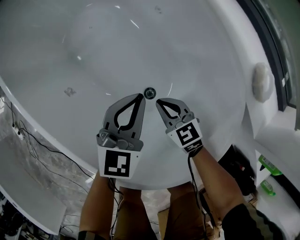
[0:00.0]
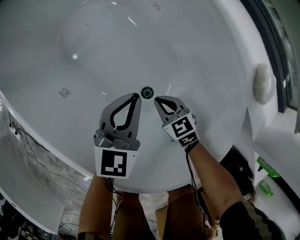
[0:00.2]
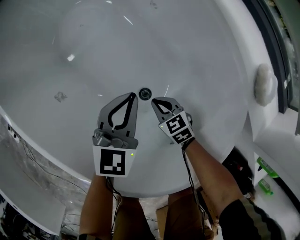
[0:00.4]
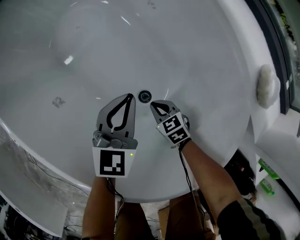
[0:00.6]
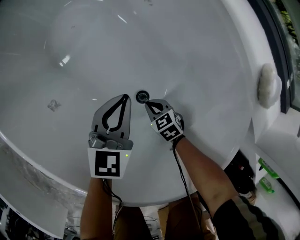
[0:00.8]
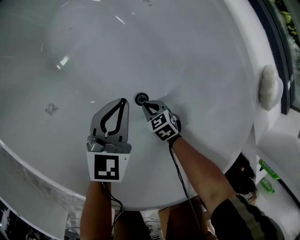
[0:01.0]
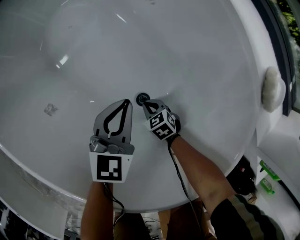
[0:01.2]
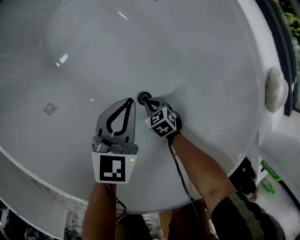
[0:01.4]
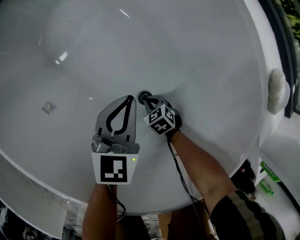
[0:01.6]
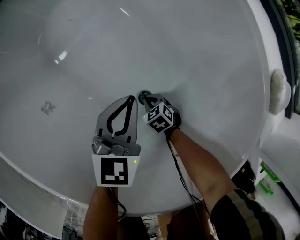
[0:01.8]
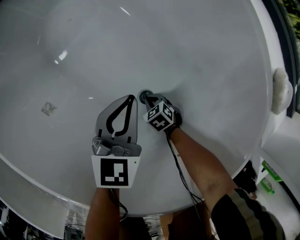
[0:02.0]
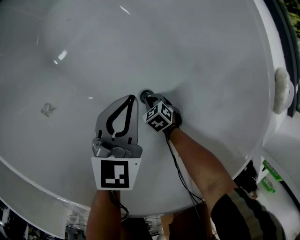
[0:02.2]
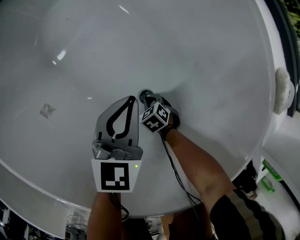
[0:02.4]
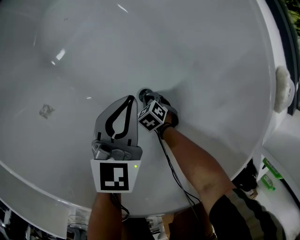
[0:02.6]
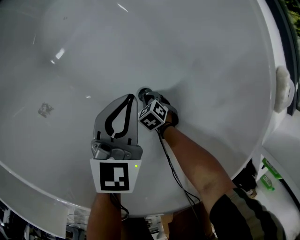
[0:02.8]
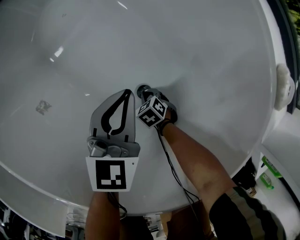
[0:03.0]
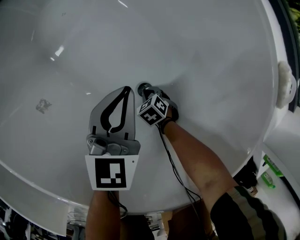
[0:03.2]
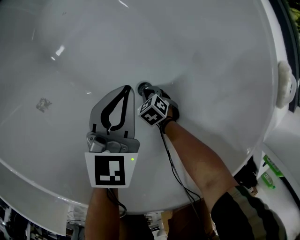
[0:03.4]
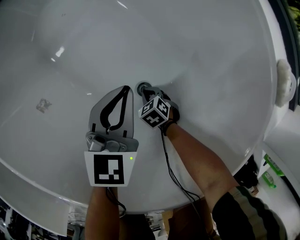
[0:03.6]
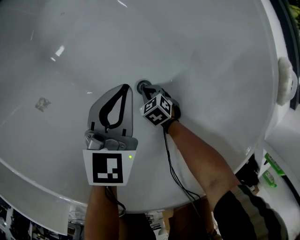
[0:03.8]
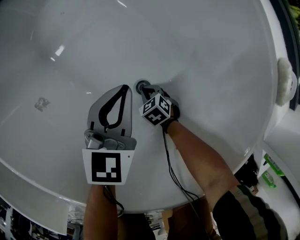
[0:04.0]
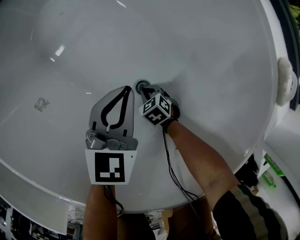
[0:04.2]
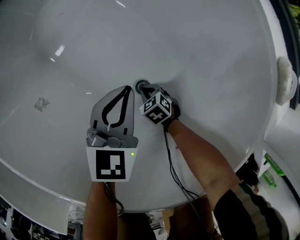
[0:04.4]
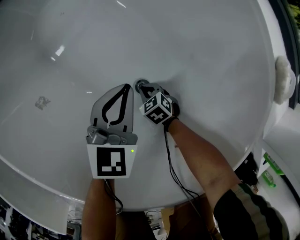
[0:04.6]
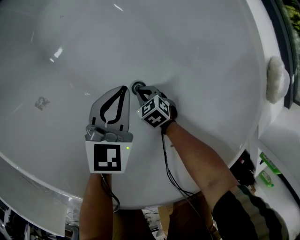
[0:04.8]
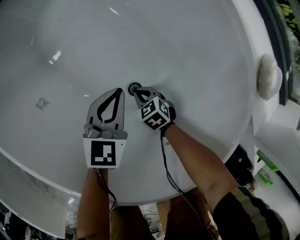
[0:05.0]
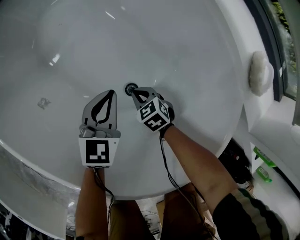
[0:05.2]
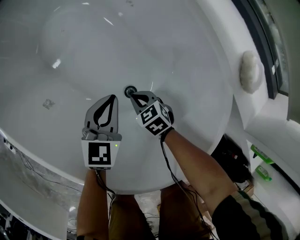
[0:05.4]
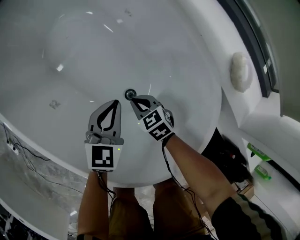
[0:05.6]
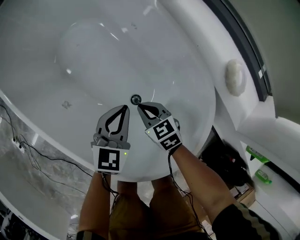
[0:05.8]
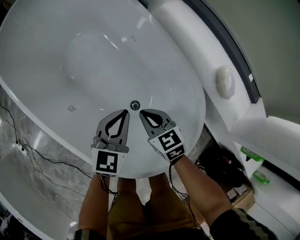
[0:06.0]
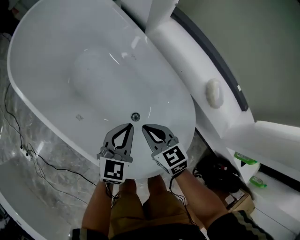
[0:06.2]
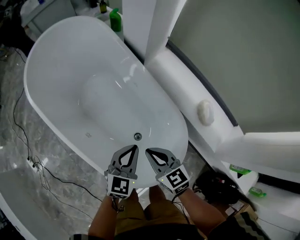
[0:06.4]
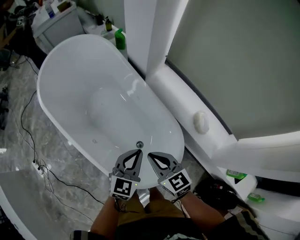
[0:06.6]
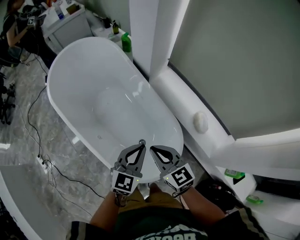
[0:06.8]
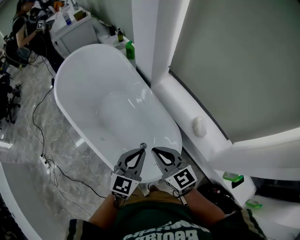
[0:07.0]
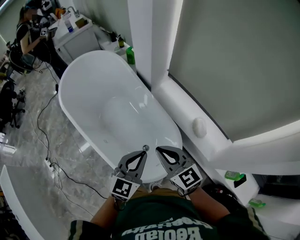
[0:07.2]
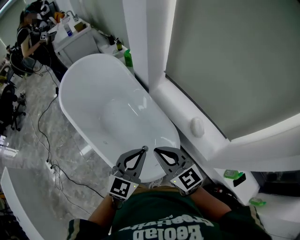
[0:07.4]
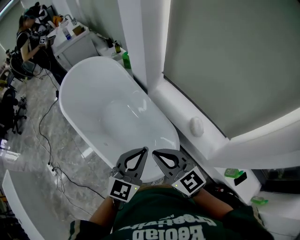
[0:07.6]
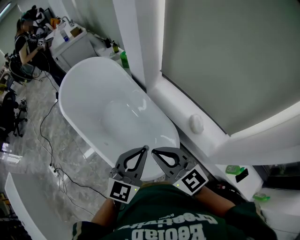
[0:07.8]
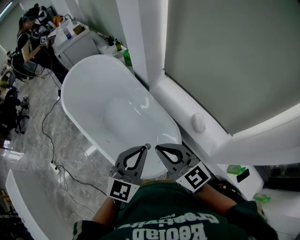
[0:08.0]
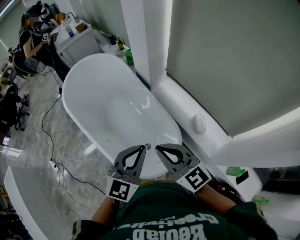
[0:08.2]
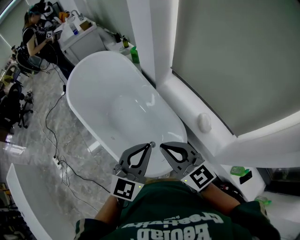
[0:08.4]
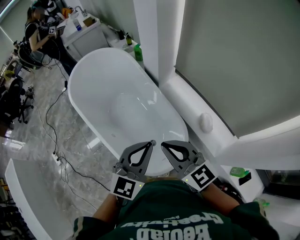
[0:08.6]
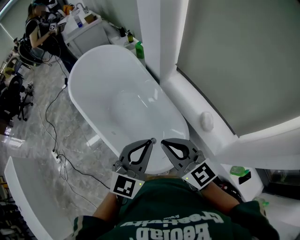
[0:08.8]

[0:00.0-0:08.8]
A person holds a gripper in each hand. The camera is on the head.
0:00.0 to 0:01.4: The left gripper moves downward, roughly 10 cm. Meanwhile the right gripper moves downward, roughly 25 cm, and rotates about 30 degrees.
0:01.4 to 0:03.0: The right gripper moves downward, roughly 5 cm.
0:03.0 to 0:04.4: The grippers make only small movements.
0:04.4 to 0:05.8: The left gripper travels upward by about 15 cm; the right gripper goes roughly 30 cm upward, and changes its angle by about 20 degrees.
0:05.8 to 0:07.4: The grippers both shift upward by about 50 cm. The right gripper tilts its fingers about 30 degrees upward.
0:07.4 to 0:08.8: The left gripper shifts approximately 5 cm upward; the right gripper ends up some 5 cm from where it was.

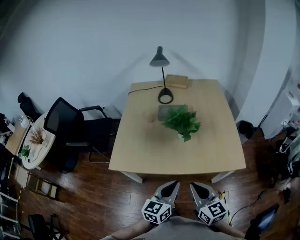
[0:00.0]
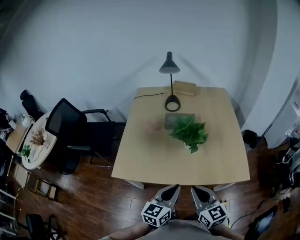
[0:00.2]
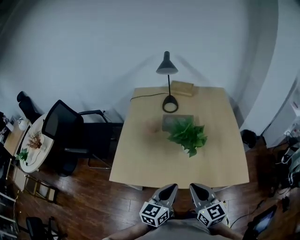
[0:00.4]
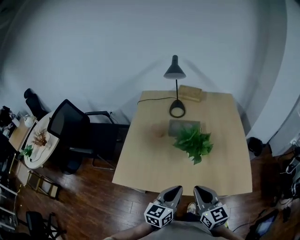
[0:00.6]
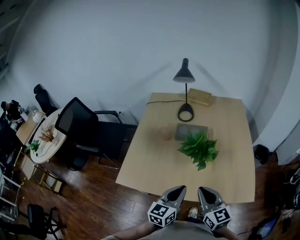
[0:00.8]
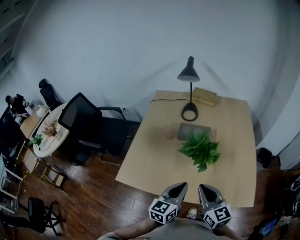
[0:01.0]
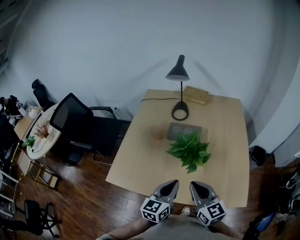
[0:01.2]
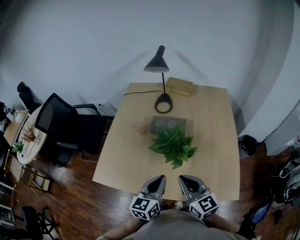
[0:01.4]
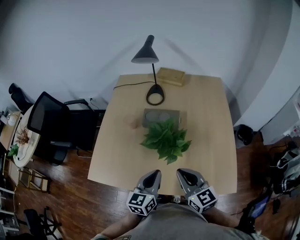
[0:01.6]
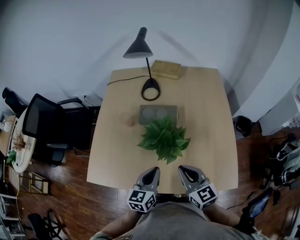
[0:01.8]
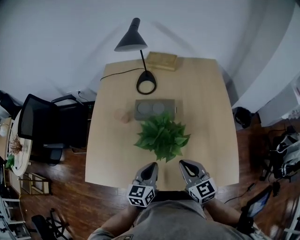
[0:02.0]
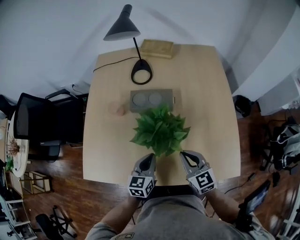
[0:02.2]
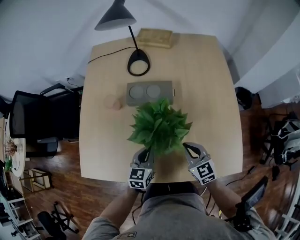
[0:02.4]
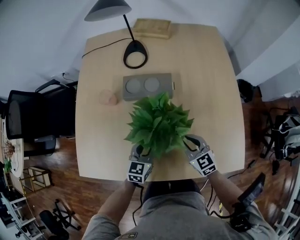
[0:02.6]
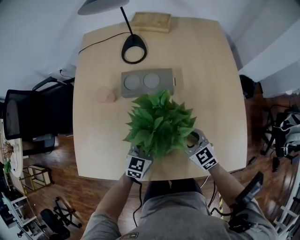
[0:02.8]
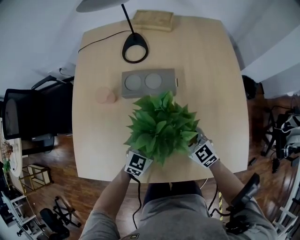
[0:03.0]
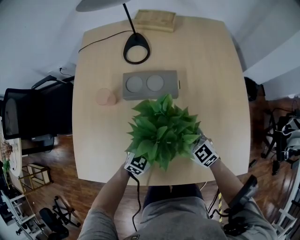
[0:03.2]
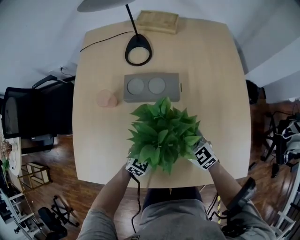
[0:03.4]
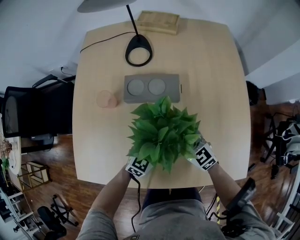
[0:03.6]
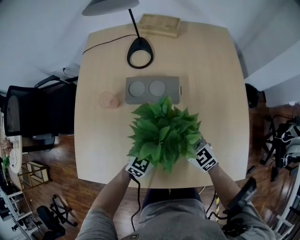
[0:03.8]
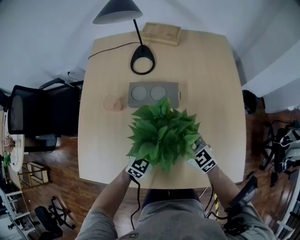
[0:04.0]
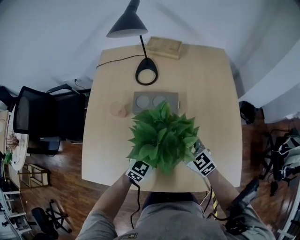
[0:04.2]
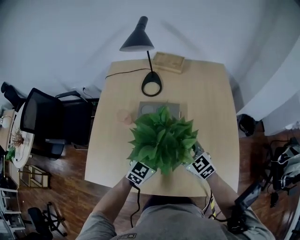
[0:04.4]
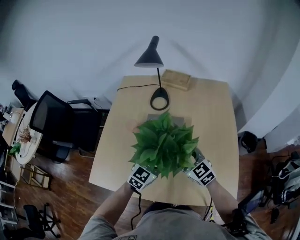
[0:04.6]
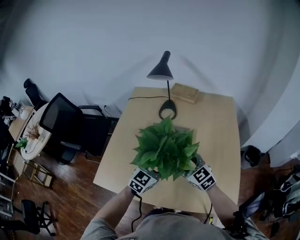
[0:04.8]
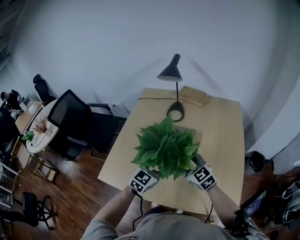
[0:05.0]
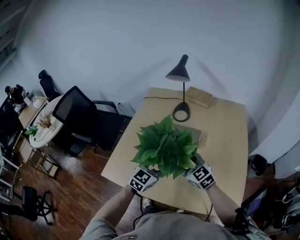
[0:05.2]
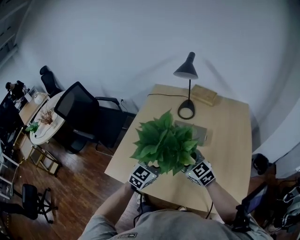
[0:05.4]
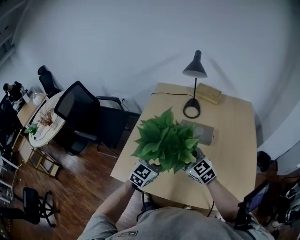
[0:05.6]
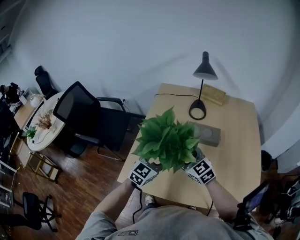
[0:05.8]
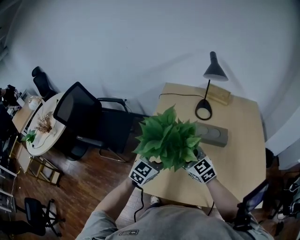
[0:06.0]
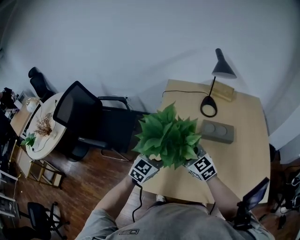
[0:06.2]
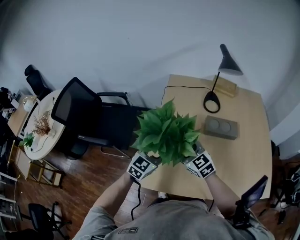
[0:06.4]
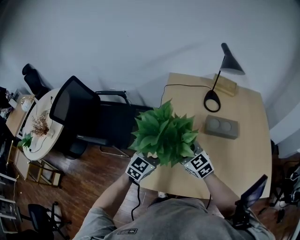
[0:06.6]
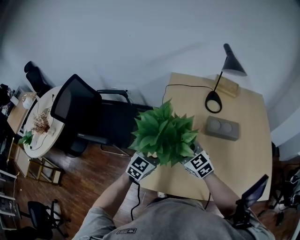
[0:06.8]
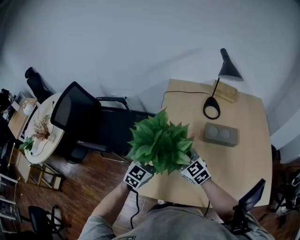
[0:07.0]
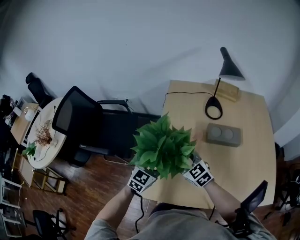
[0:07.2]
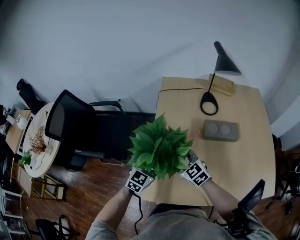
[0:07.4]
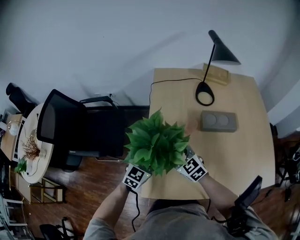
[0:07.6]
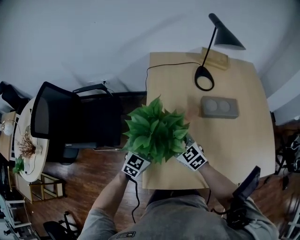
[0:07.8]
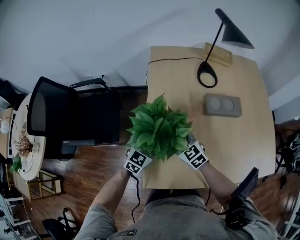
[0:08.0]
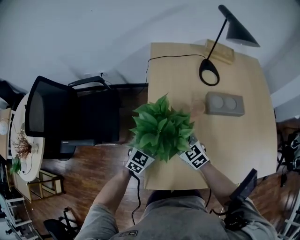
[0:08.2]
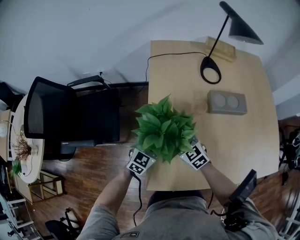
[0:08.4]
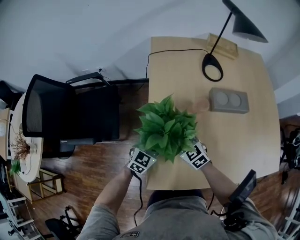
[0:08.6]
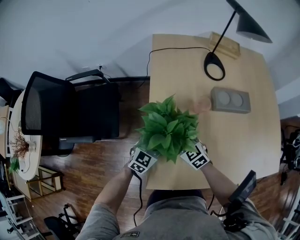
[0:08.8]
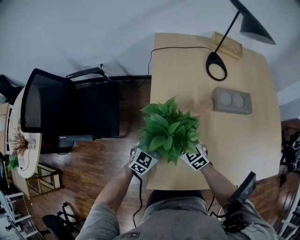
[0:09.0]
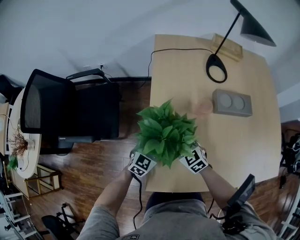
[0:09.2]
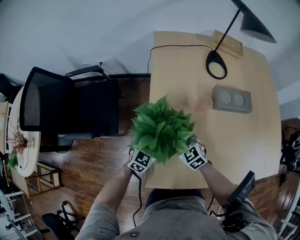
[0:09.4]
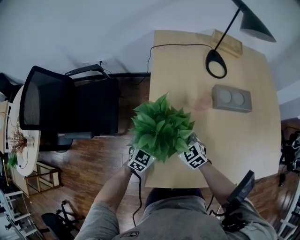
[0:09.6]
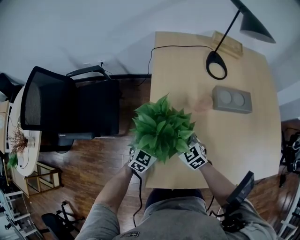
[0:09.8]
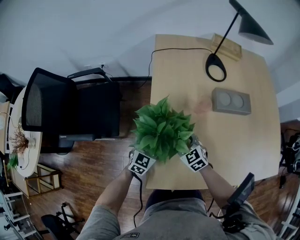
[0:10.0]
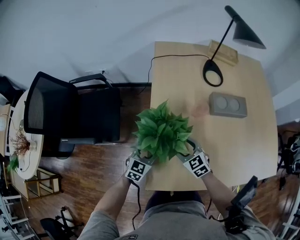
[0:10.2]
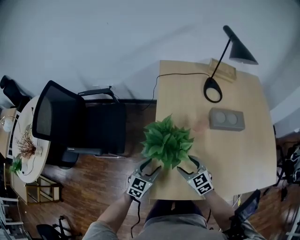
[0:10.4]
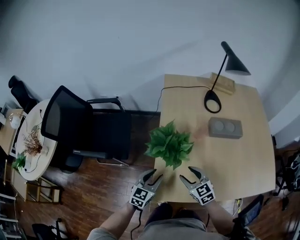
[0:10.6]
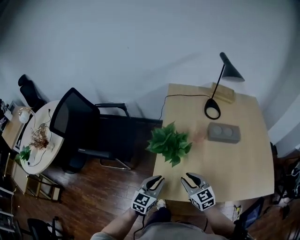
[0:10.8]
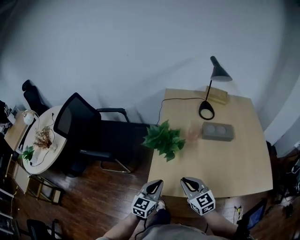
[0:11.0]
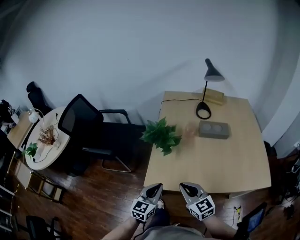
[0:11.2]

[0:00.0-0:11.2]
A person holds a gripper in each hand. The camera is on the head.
0:00.0 to 0:01.6: The two grippers go roughly 20 cm forward.
0:01.6 to 0:03.2: Both grippers move downward and forward, approximately 20 cm. The right gripper rotates roughly 30 degrees, and opens, while the left gripper turns by roughly 40 degrees, and opens its fingers.
0:03.2 to 0:04.8: Both grippers travel together upward, some 15 cm.
0:04.8 to 0:06.4: The two grippers go roughly 30 cm to the left.
0:06.4 to 0:08.0: Both grippers travel together downward, approximately 10 cm.
0:08.0 to 0:09.6: The grippers both shift downward by about 10 cm.
0:09.6 to 0:11.2: The two grippers go about 30 cm backward and upward. The right gripper changes its angle by roughly 20 degrees, and closes up; the left gripper turns by roughly 30 degrees, and closes up.

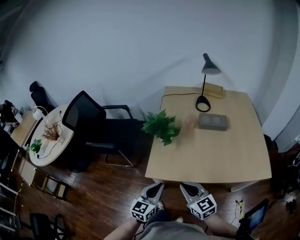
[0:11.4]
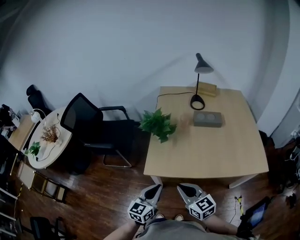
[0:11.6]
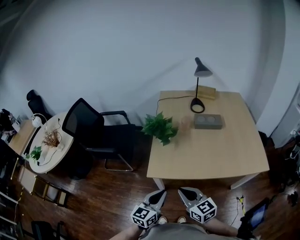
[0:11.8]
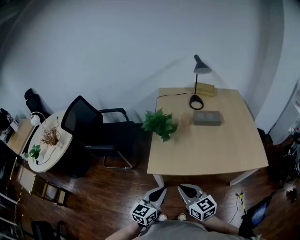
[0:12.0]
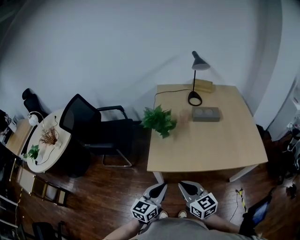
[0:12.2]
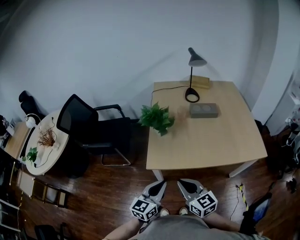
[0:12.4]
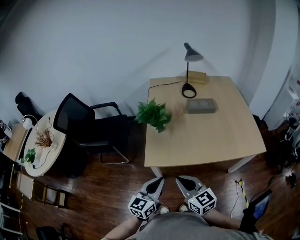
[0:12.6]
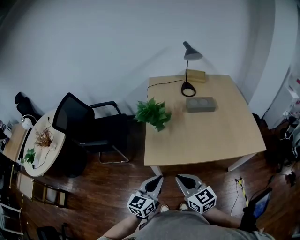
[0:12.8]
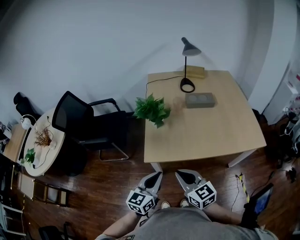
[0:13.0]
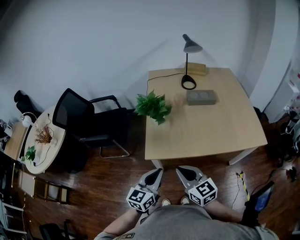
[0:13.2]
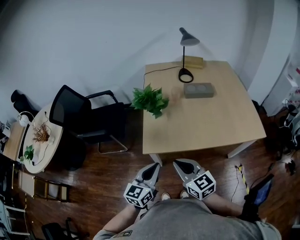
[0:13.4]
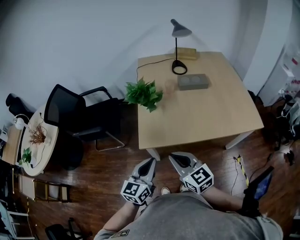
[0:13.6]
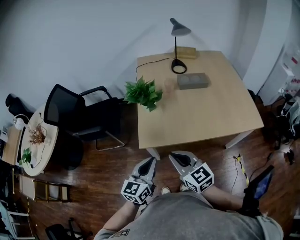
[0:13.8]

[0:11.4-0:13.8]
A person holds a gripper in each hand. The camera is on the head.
0:11.4 to 0:12.6: The grippers both shift backward by some 5 cm.
0:12.6 to 0:13.8: The grippers move only a little.

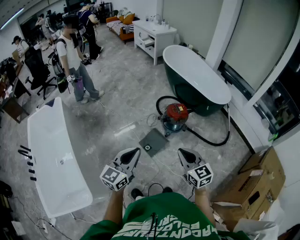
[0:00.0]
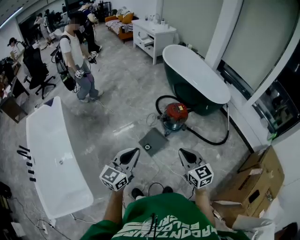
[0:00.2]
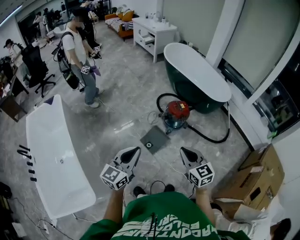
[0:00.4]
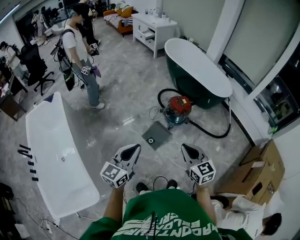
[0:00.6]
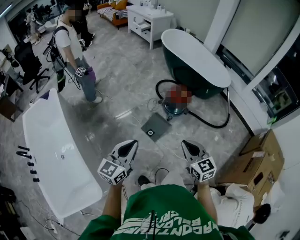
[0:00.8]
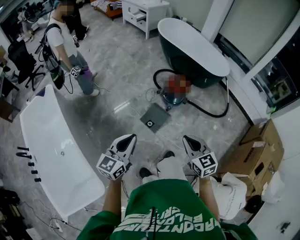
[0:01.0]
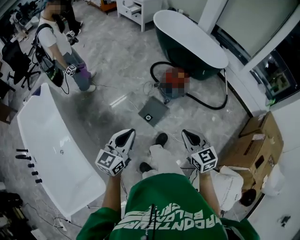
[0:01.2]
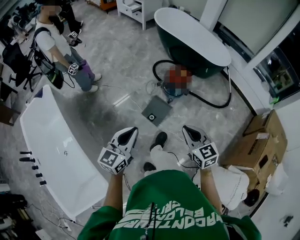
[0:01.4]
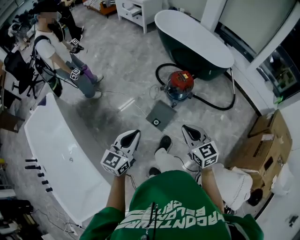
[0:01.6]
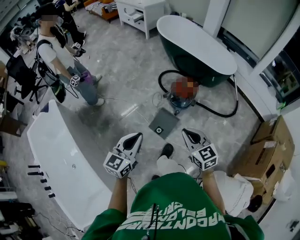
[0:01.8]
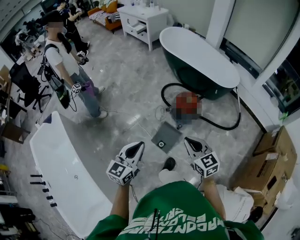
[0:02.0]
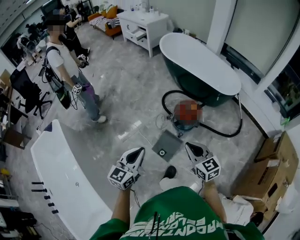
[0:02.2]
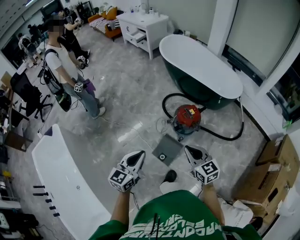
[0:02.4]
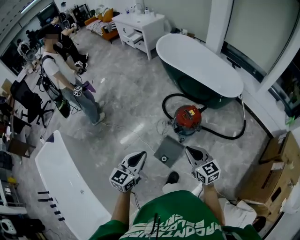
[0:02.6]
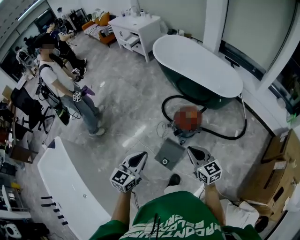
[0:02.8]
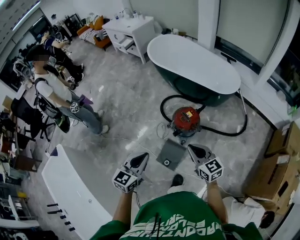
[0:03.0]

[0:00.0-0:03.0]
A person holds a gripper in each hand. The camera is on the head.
0:00.0 to 0:01.6: The right gripper shifts about 10 cm to the left and downward; the left gripper moves to the left, downward and forward, roughly 15 cm.
0:01.6 to 0:03.0: The two grippers go roughly 30 cm forward.
